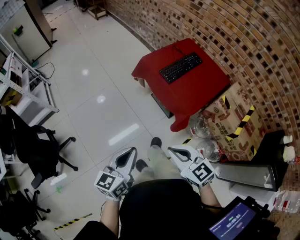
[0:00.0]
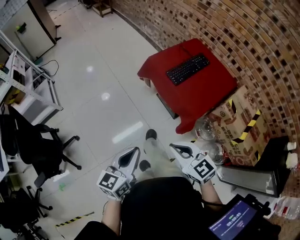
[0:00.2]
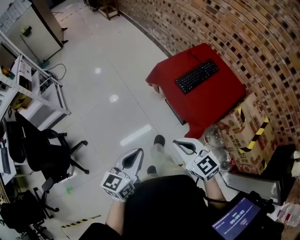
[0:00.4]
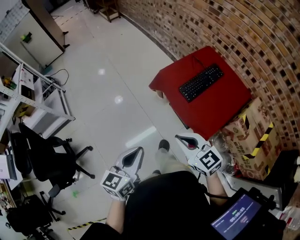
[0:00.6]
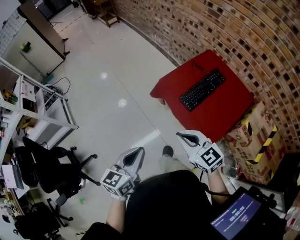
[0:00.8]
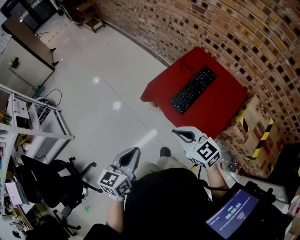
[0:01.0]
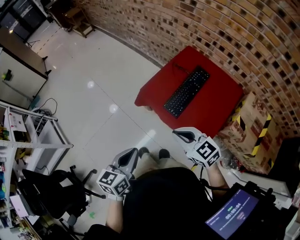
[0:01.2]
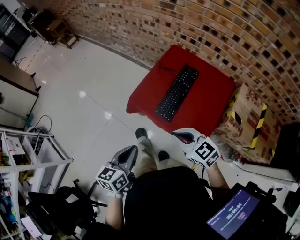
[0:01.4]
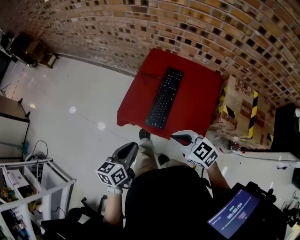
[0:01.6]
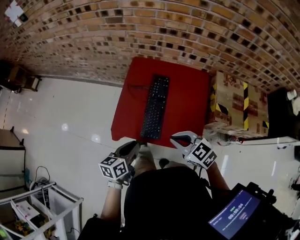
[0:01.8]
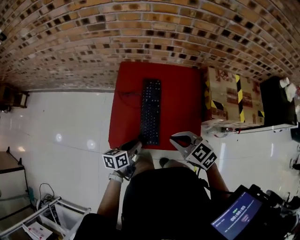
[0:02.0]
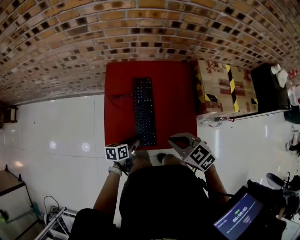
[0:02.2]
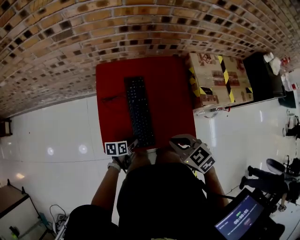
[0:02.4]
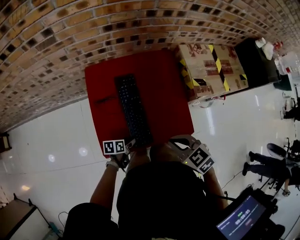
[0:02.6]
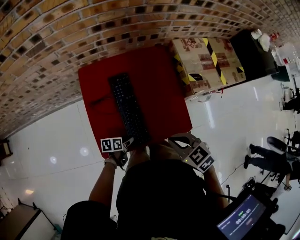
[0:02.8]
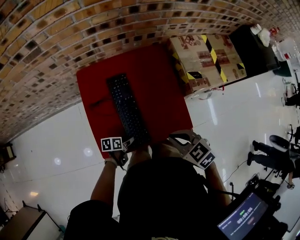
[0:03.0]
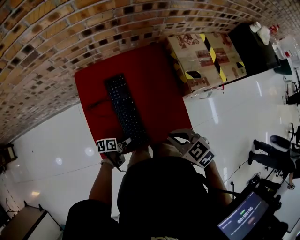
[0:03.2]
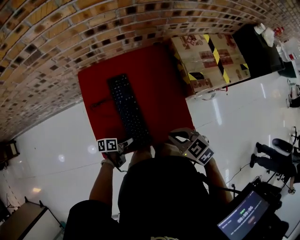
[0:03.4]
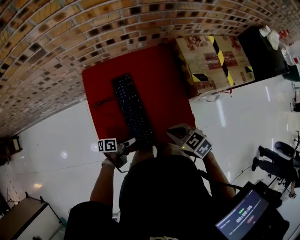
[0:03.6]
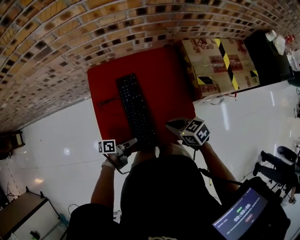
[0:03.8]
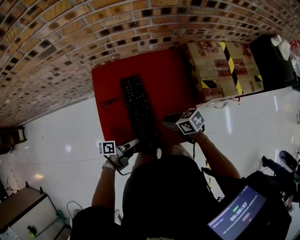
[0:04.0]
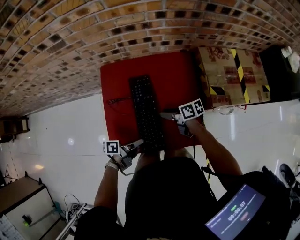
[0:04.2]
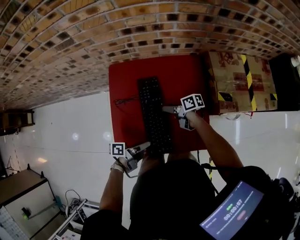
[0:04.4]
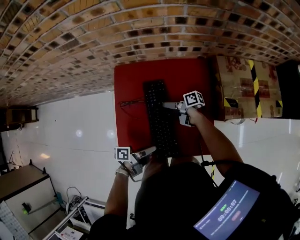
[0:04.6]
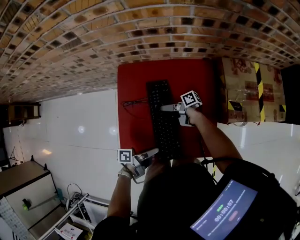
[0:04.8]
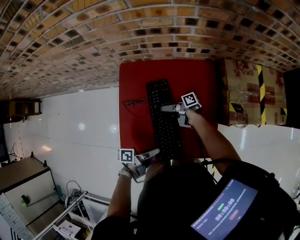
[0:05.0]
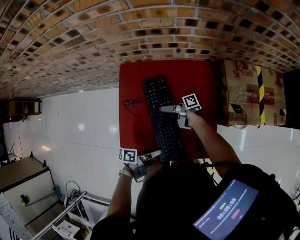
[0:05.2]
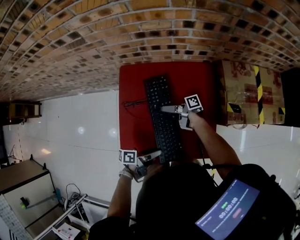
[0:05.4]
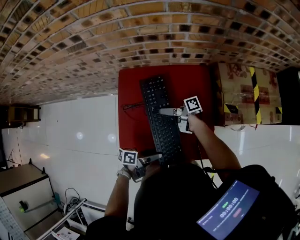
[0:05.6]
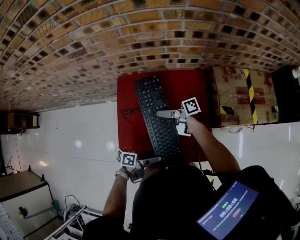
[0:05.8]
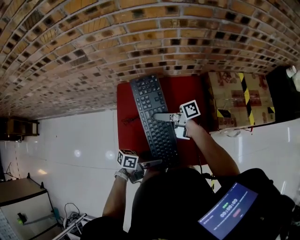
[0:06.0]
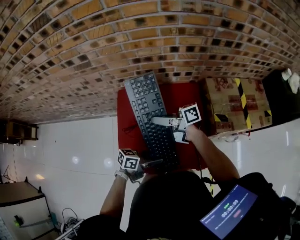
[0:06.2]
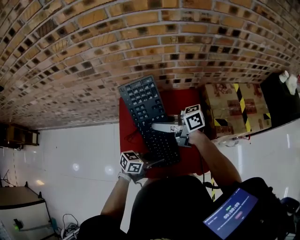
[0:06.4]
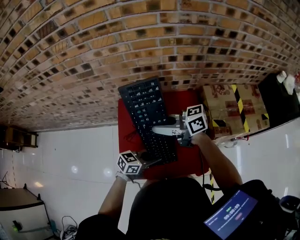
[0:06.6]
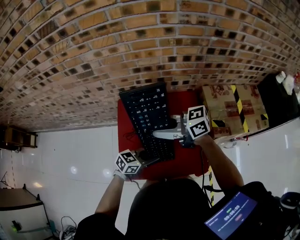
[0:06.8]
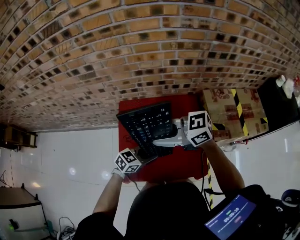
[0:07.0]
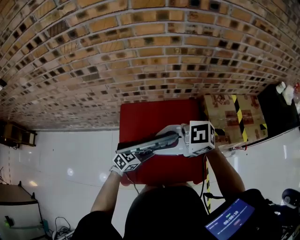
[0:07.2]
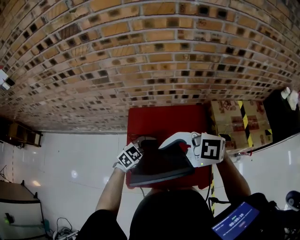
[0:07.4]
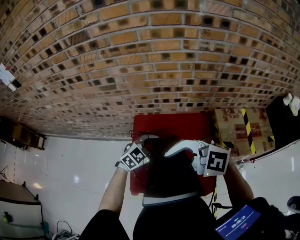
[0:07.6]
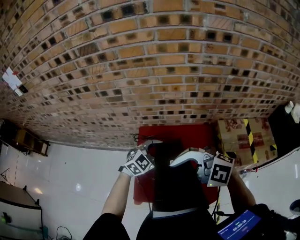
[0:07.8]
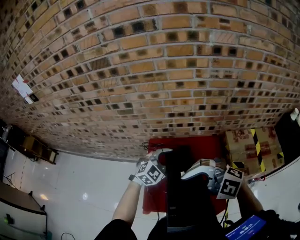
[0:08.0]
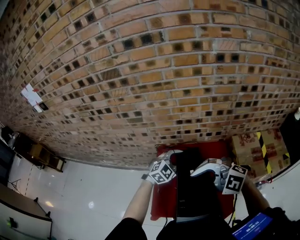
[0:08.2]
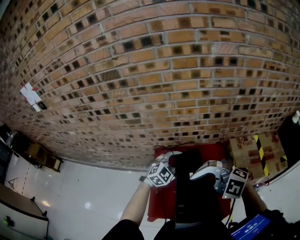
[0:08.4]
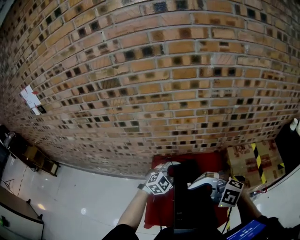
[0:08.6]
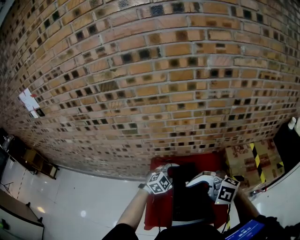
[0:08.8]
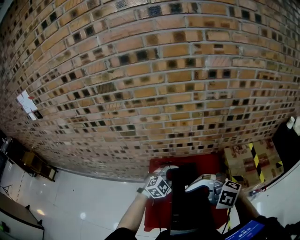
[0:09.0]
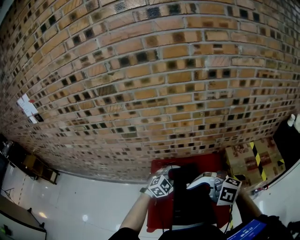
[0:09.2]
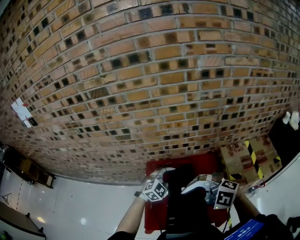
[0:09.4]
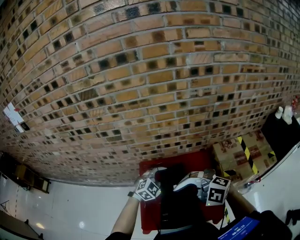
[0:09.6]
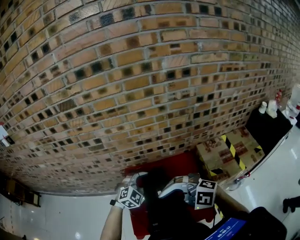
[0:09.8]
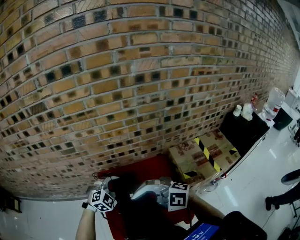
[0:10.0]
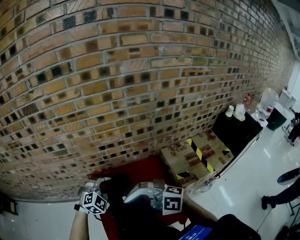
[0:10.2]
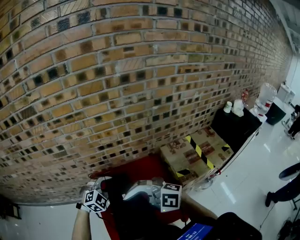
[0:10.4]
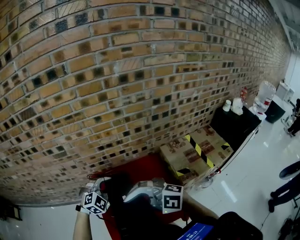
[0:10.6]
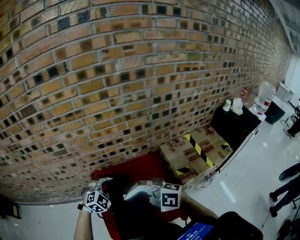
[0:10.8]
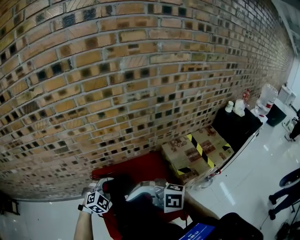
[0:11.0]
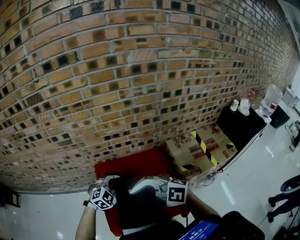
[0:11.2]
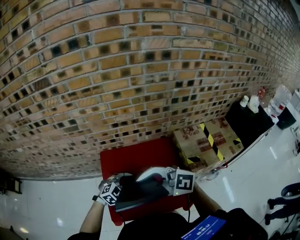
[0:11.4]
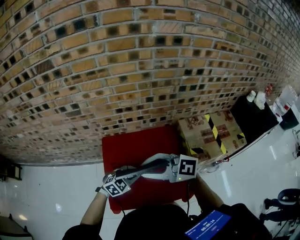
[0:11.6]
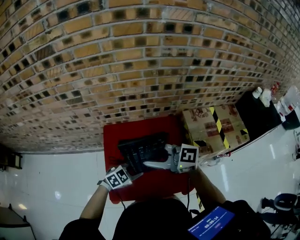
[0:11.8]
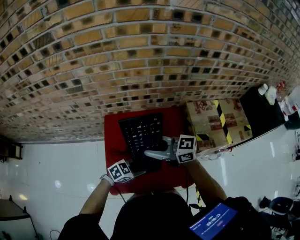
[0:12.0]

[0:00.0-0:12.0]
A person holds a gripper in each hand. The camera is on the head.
0:00.0 to 0:01.6: The pair of grippers is taken some 40 cm. The right gripper changes its angle by some 20 degrees; the left gripper swivels about 30 degrees.
0:01.6 to 0:03.0: The right gripper changes place by roughly 10 cm, and changes its angle by approximately 50 degrees. The left gripper moves downward, some 30 cm, and changes its angle by about 60 degrees.
0:03.0 to 0:04.4: The right gripper ends up some 25 cm from where it was, rotates around the line of its fingers by some 50 degrees, clockwise from behind, and opens its fingers. The left gripper is displaced upward by about 15 cm, and tips its fingers upward by roughly 30 degrees.
0:04.4 to 0:06.0: The left gripper rotates roughly 30 degrees, and opens. The right gripper travels upward by some 20 cm, tilts its fingers roughly 30 degrees upward, and closes up.
0:06.0 to 0:07.6: The right gripper is displaced upward by about 25 cm, and rotates around the line of its fingers by some 90 degrees, counterclockwise from behind. Meanwhile the left gripper moves about 20 cm, rolls clockwise, seen from behind, by roughly 70 degrees, and closes.
0:07.6 to 0:09.0: The left gripper shifts by roughly 5 cm.
0:09.0 to 0:10.4: There are only small adjustments of the grippers.
0:10.4 to 0:12.0: The left gripper shifts by some 25 cm, and swivels approximately 60 degrees. Meanwhile the right gripper goes about 10 cm downward, and rolls clockwise, seen from behind, by roughly 60 degrees.

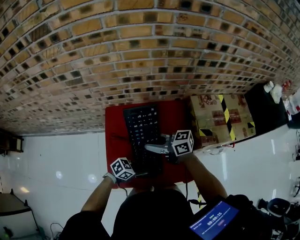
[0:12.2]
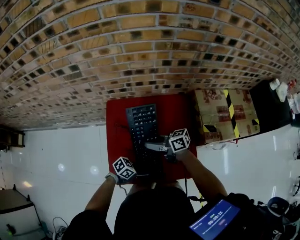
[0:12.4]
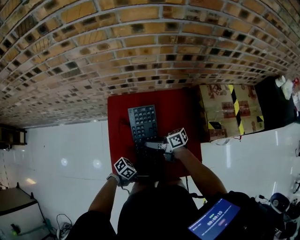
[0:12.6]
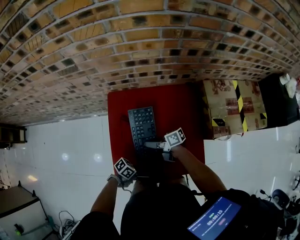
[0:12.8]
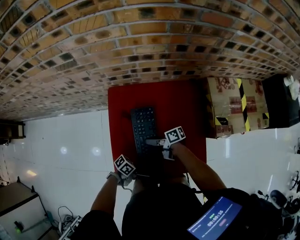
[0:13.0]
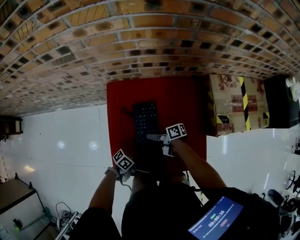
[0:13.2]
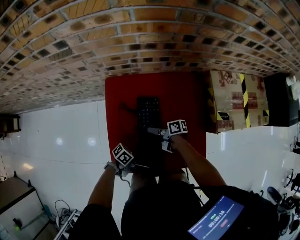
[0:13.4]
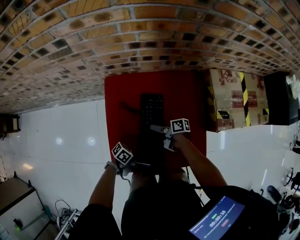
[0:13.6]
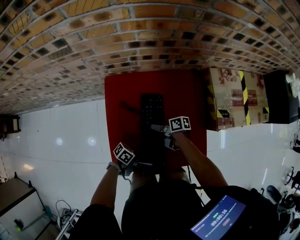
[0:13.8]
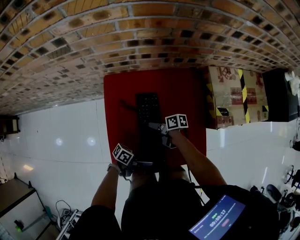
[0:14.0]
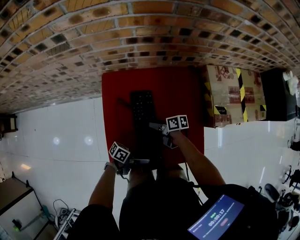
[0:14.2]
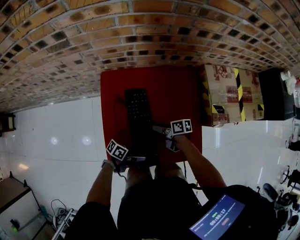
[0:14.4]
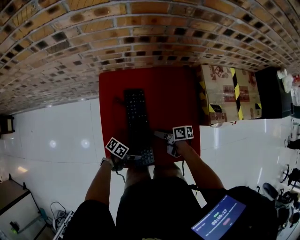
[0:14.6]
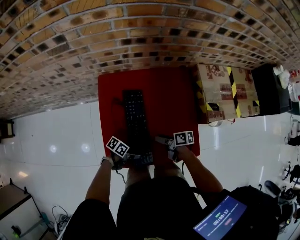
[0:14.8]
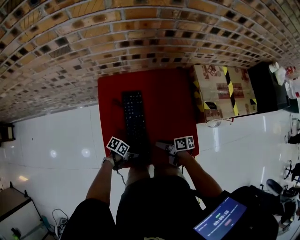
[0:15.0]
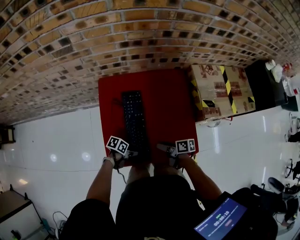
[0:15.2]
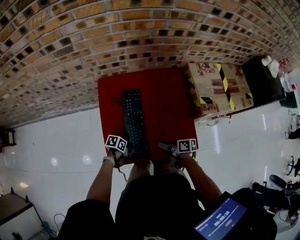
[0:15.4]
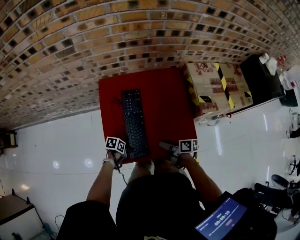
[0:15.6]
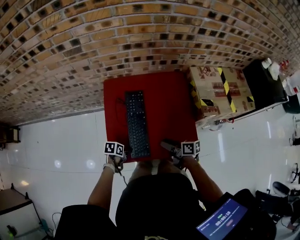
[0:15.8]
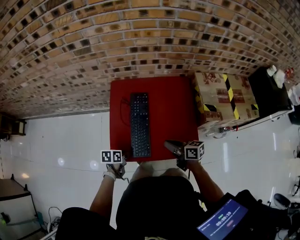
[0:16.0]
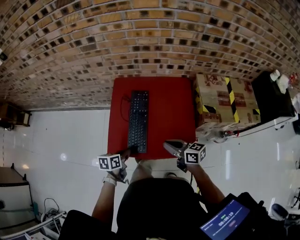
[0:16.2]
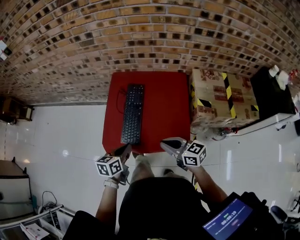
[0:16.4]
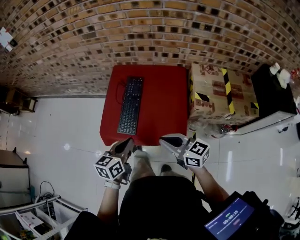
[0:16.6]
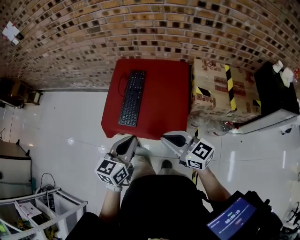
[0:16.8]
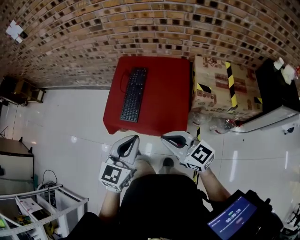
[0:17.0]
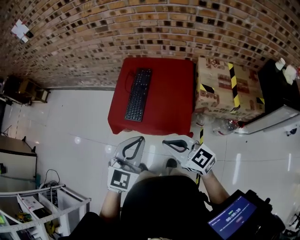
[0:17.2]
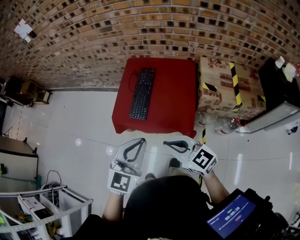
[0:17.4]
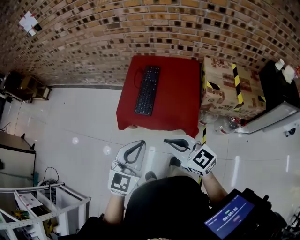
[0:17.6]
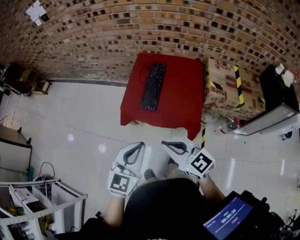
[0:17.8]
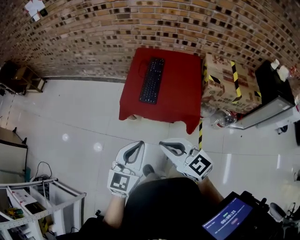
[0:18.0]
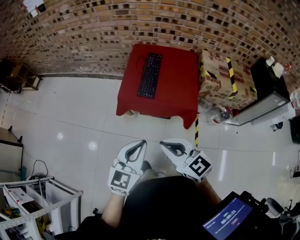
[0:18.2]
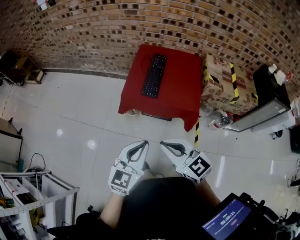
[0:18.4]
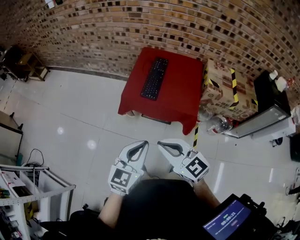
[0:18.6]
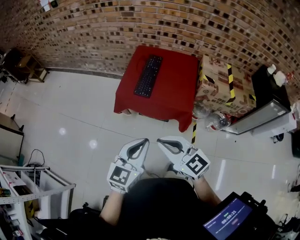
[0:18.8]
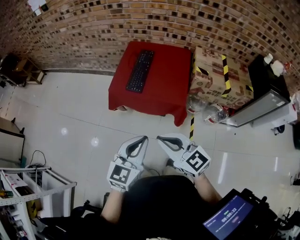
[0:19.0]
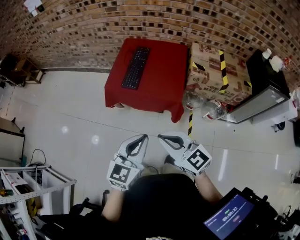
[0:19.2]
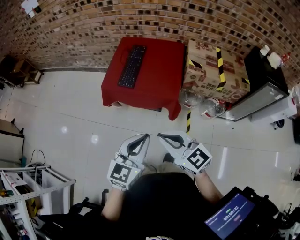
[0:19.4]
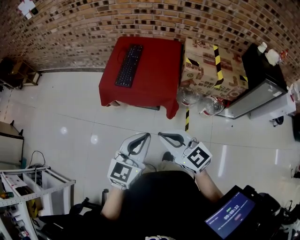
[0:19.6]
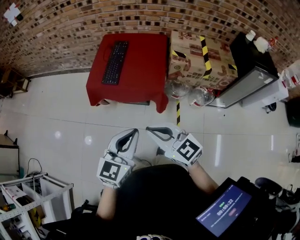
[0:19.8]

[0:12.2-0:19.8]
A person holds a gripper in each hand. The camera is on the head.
0:12.2 to 0:13.8: The right gripper travels downward by approximately 30 cm, rolls clockwise, seen from behind, by some 50 degrees, and opens its fingers, while the left gripper is displaced downward by roughly 10 cm, and rotates some 50 degrees.
0:13.8 to 0:15.2: The right gripper moves about 15 cm. The left gripper moves downward, some 10 cm, and tilts its fingers about 30 degrees downward.
0:15.2 to 0:16.8: Both grippers move upward, roughly 30 cm. The right gripper rotates around the line of its fingers by approximately 70 degrees, counterclockwise from behind, and closes; the left gripper changes its angle by about 80 degrees, and closes its fingers.
0:16.8 to 0:18.2: The left gripper shifts some 25 cm backward and to the left. Meanwhile the right gripper travels to the left and backward by about 30 cm.
0:18.2 to 0:19.8: The grippers both shift to the right and backward by some 15 cm.

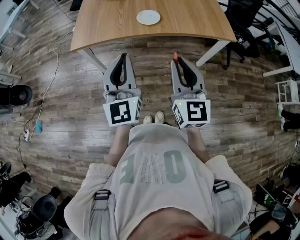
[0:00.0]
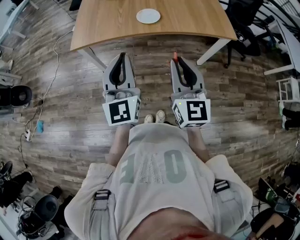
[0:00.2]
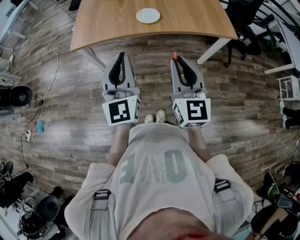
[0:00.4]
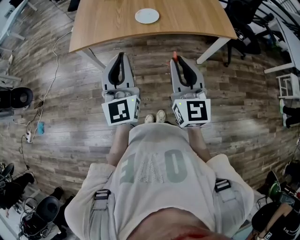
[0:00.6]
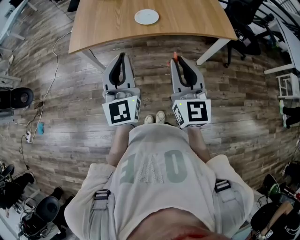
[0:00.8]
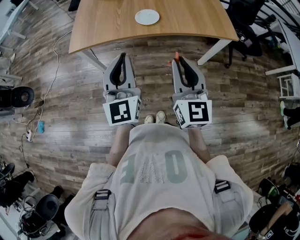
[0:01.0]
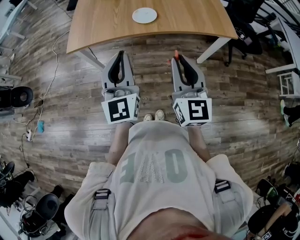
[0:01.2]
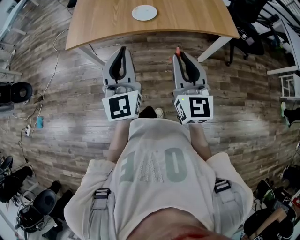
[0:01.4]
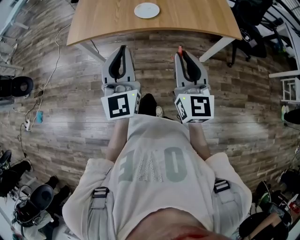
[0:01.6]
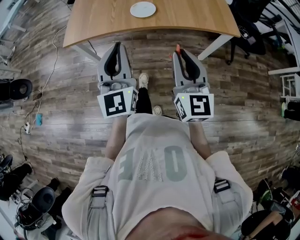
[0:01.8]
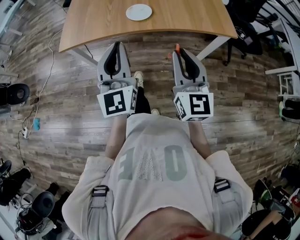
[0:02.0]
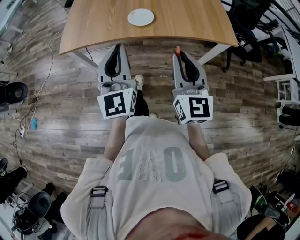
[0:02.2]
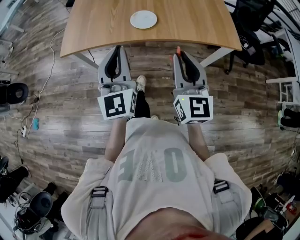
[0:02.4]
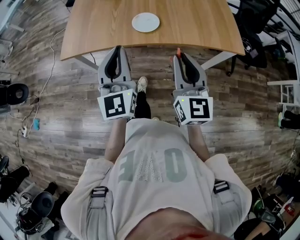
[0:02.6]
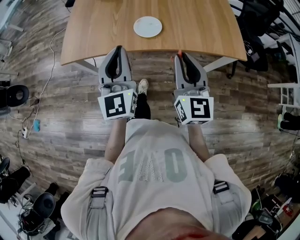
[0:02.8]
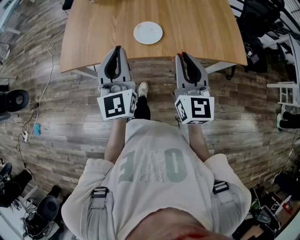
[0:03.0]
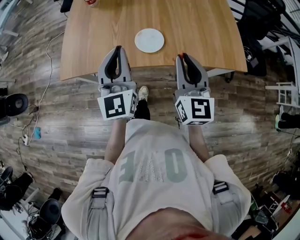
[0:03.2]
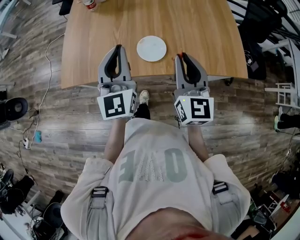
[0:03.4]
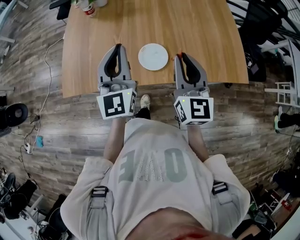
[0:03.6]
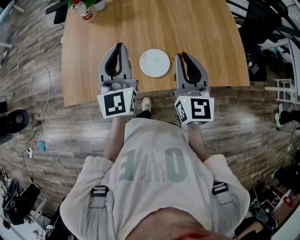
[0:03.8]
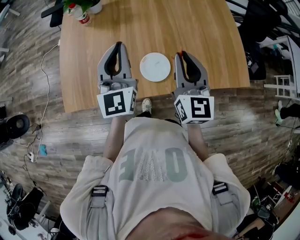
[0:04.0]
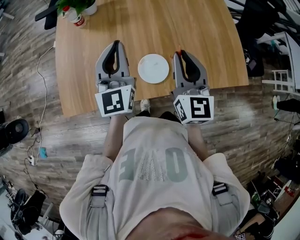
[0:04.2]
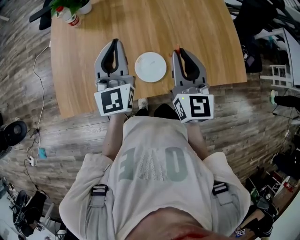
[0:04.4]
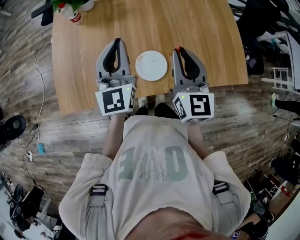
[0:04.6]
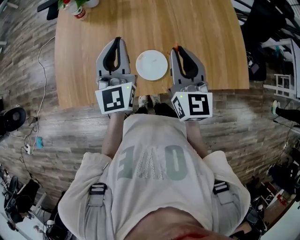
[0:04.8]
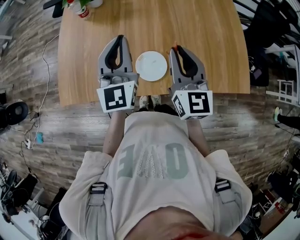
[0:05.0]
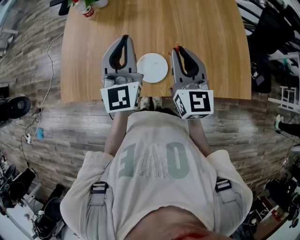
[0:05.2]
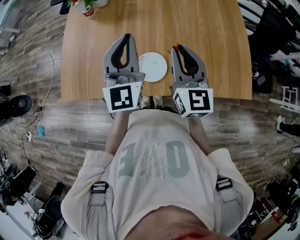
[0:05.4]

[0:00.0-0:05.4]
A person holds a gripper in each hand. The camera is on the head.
0:00.0 to 0:01.4: The left gripper changes place by approximately 5 cm; the right gripper shifts about 5 cm to the right.
0:01.4 to 0:02.8: Both grippers travel together forward, some 15 cm.
0:02.8 to 0:04.0: Both grippers travel together forward, roughly 25 cm.
0:04.0 to 0:05.4: The left gripper moves to the right, about 5 cm; the right gripper changes place by some 5 cm.
